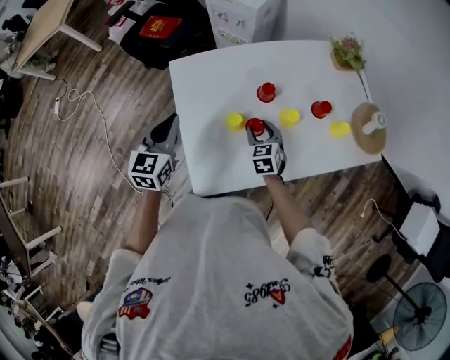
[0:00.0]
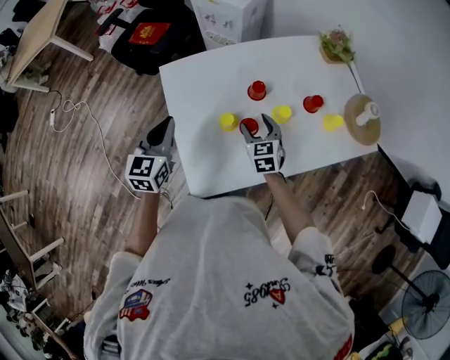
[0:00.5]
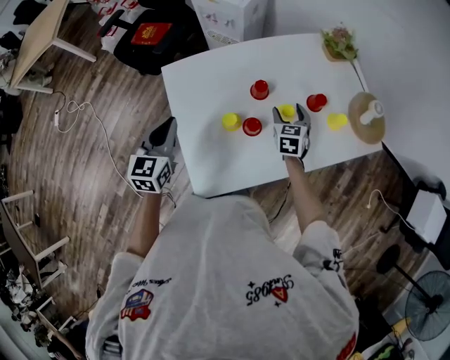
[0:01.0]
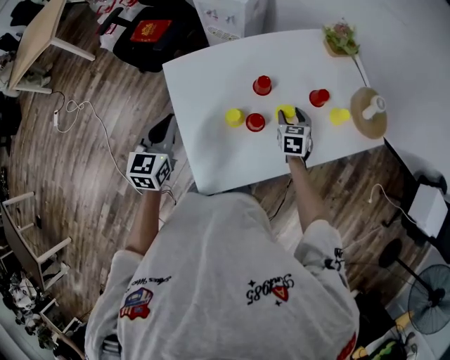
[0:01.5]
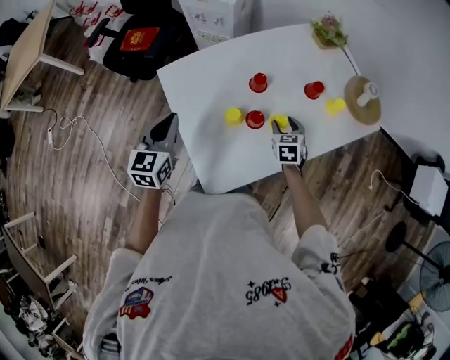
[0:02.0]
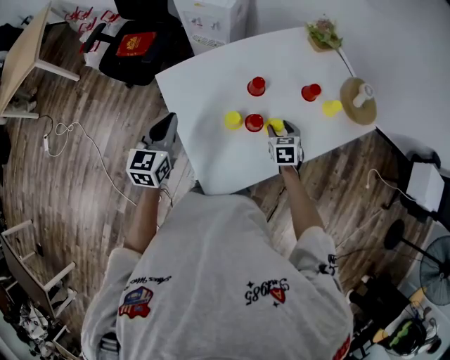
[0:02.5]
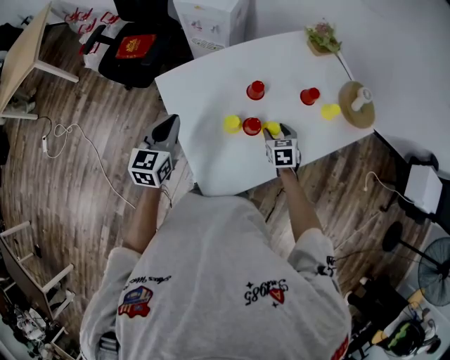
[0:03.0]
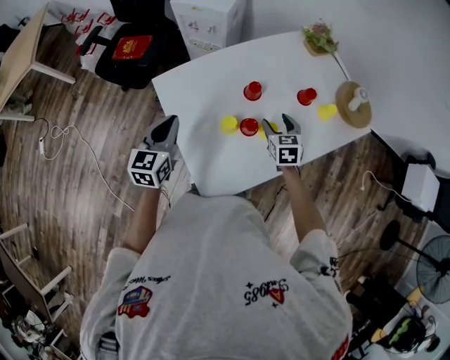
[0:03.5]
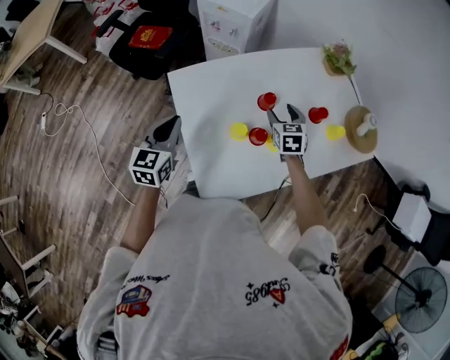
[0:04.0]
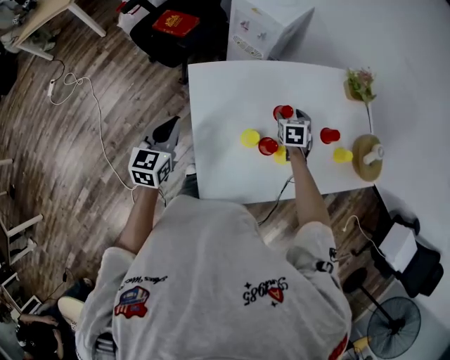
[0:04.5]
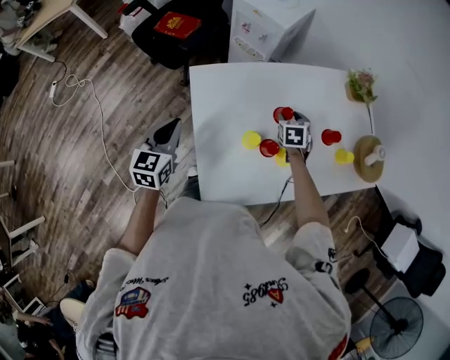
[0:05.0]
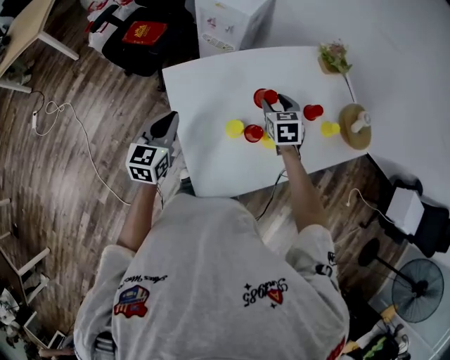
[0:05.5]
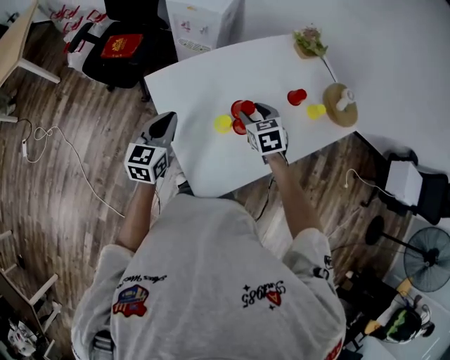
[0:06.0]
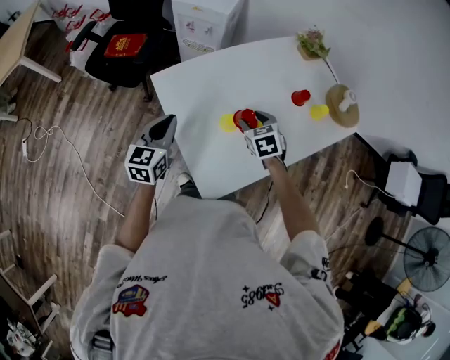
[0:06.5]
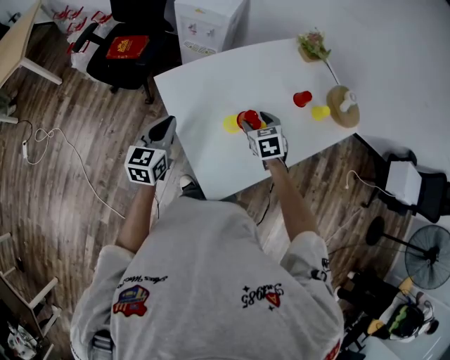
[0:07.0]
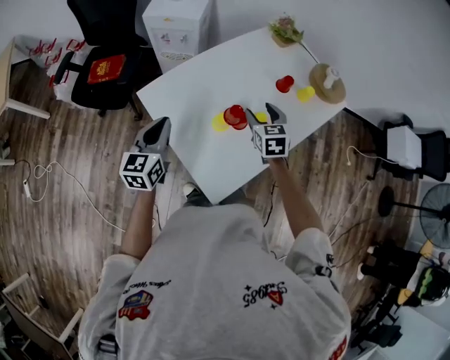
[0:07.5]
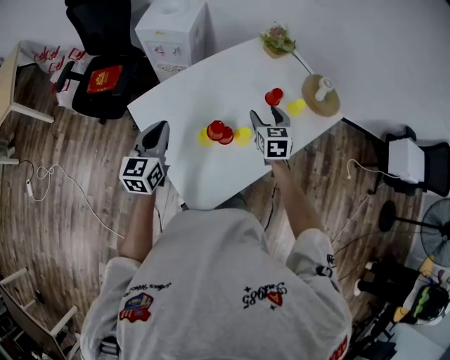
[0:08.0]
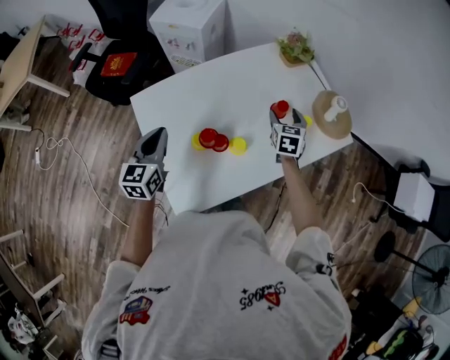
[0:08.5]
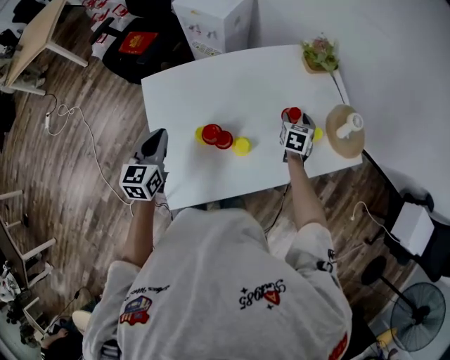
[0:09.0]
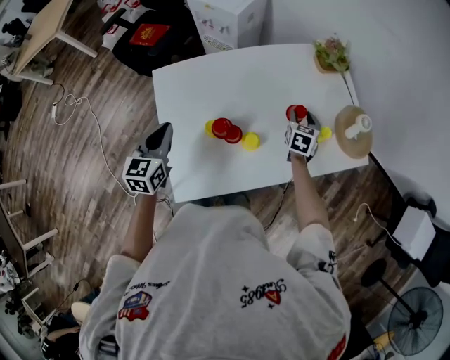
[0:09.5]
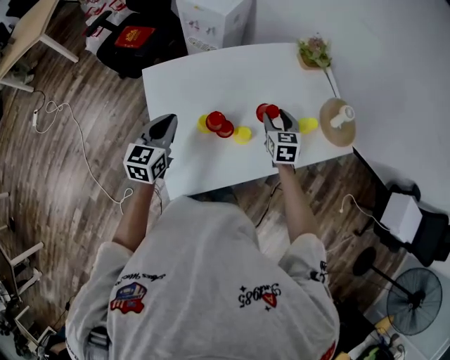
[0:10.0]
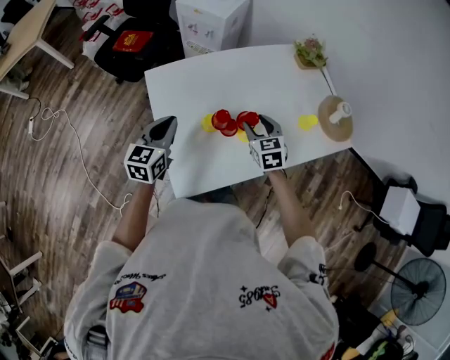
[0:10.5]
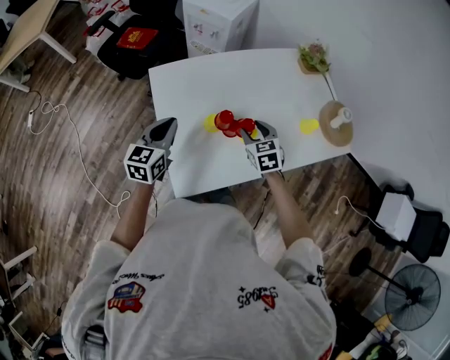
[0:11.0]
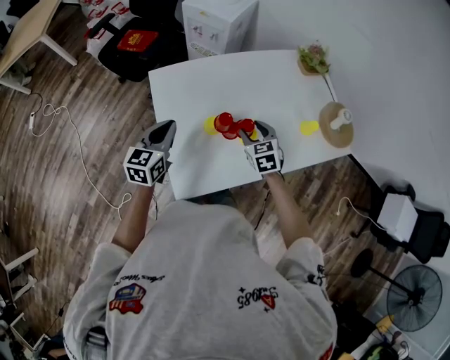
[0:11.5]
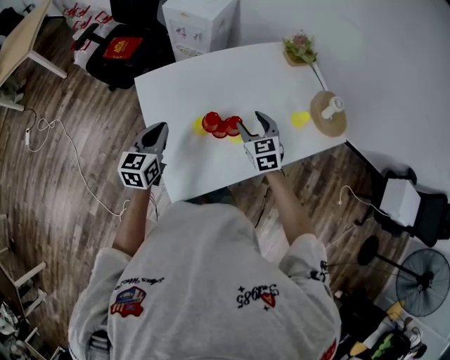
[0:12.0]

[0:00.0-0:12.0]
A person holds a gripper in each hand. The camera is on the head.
0:00.0 to 0:02.0: The right gripper travels to the right by roughly 10 cm.
0:02.0 to 0:04.0: The right gripper travels forward, to the left and upward by some 15 cm.
0:04.0 to 0:06.0: The left gripper moves approximately 5 cm to the left and comes back. The right gripper heads backward and to the left, covering roughly 10 cm.
0:06.0 to 0:08.0: The right gripper travels to the right by some 15 cm, and changes its angle by some 20 degrees. The left gripper moves to the right, roughly 5 cm.
0:08.0 to 0:10.0: The left gripper moves approximately 5 cm; the right gripper reaches about 15 cm downward, then returns.
0:10.0 to 0:12.0: The right gripper moves to the left and backward, approximately 10 cm.

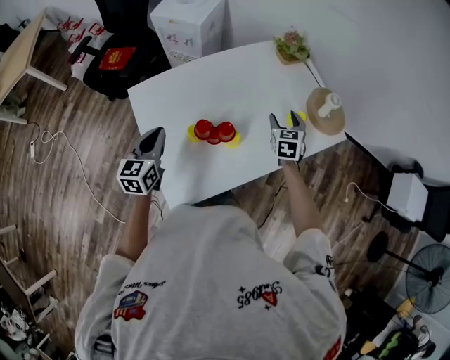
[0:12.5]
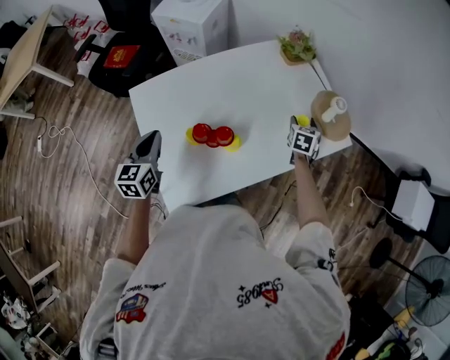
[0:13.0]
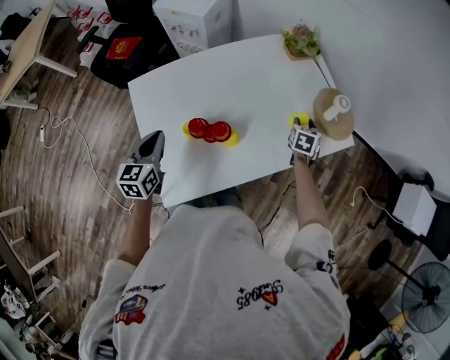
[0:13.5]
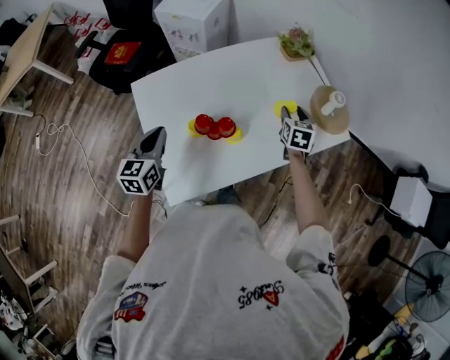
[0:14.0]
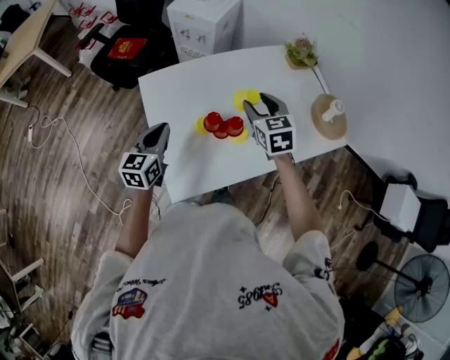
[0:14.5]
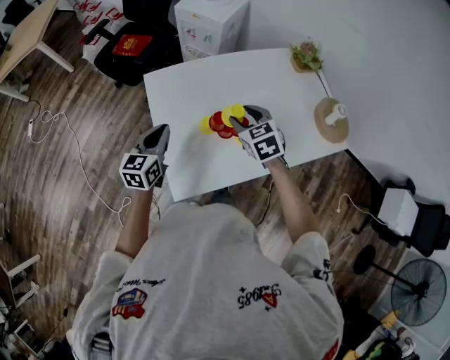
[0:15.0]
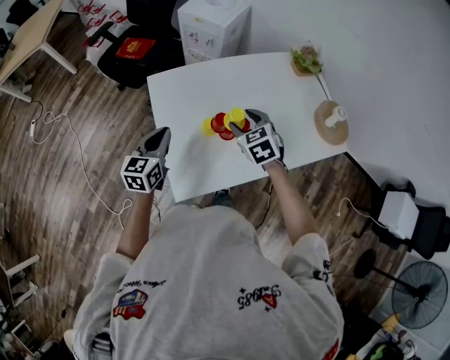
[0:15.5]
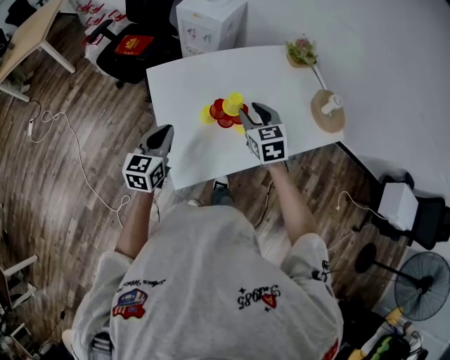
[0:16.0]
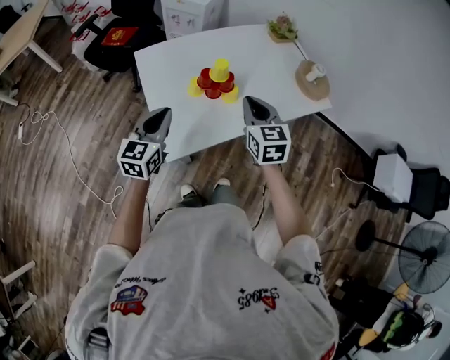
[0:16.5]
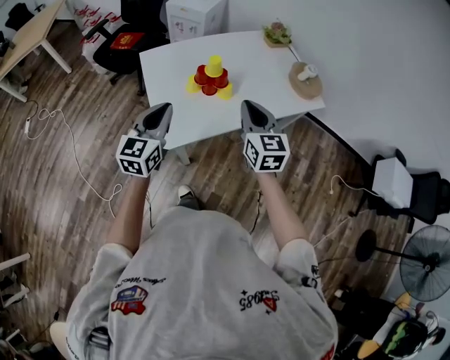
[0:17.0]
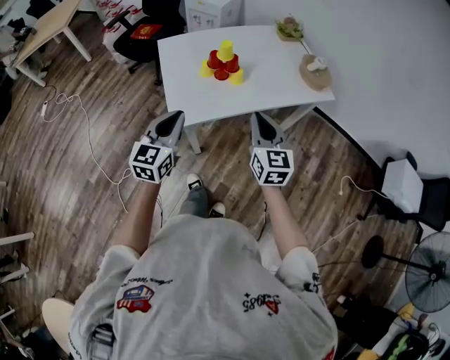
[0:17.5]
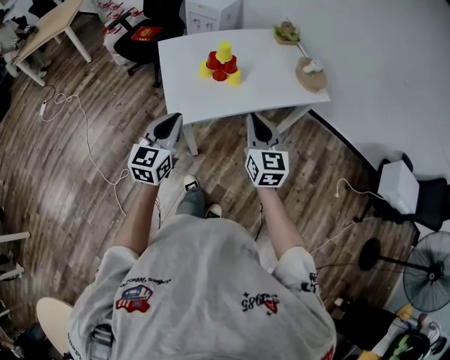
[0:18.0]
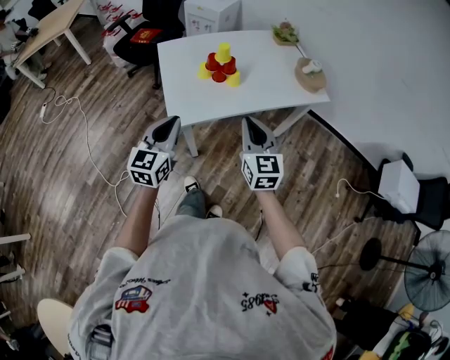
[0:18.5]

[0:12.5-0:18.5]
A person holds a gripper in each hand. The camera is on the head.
0:12.5 to 0:14.5: The right gripper heads to the left and upward, covering roughly 20 cm, and swivels approximately 20 degrees.
0:14.5 to 0:16.5: The grippers both shift backward by some 20 cm. The right gripper closes.
0:16.5 to 0:18.5: The grippers both shift backward by roughly 25 cm.

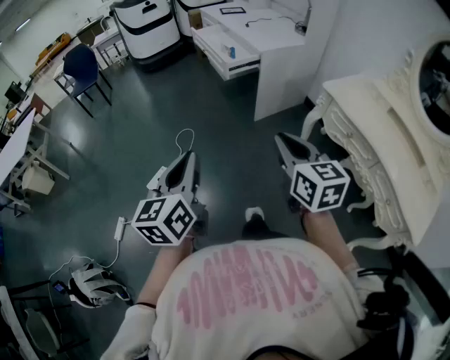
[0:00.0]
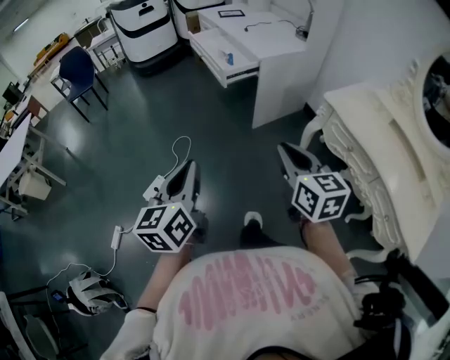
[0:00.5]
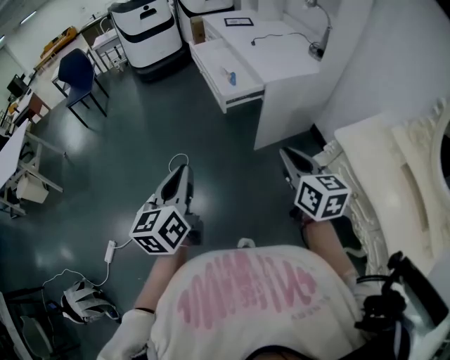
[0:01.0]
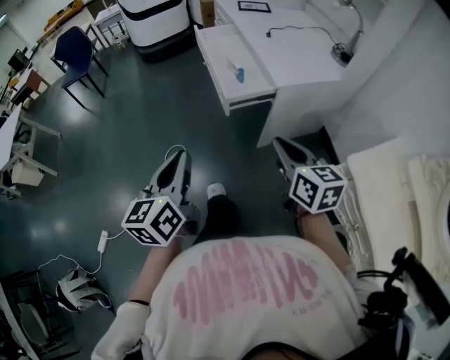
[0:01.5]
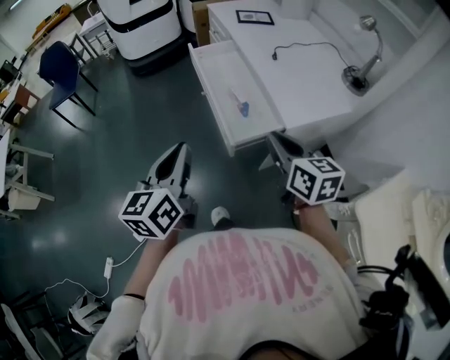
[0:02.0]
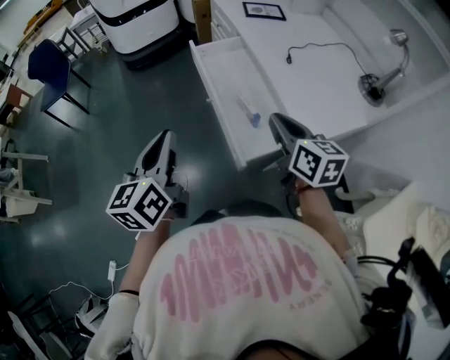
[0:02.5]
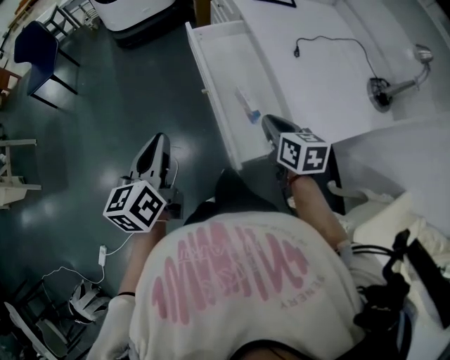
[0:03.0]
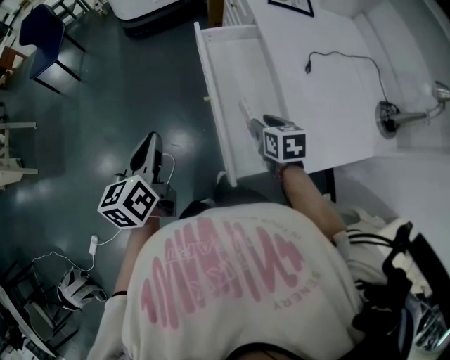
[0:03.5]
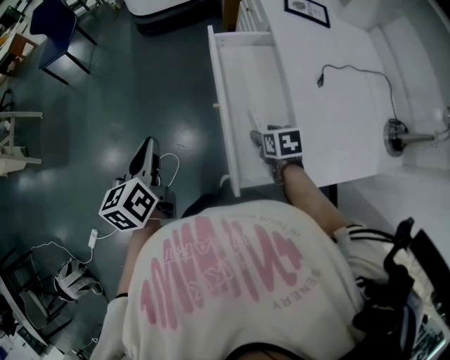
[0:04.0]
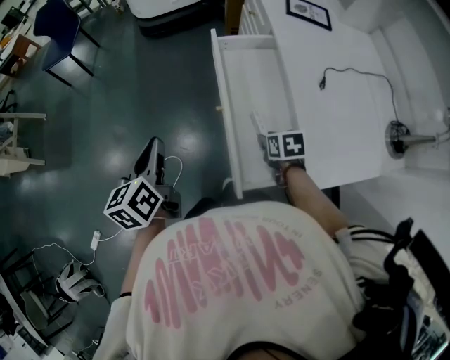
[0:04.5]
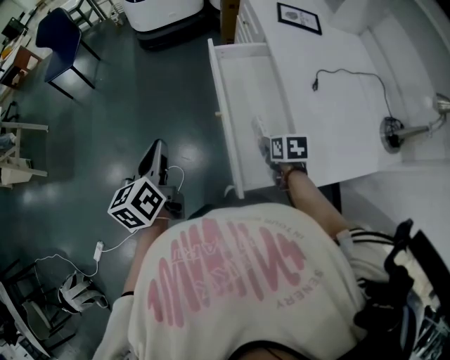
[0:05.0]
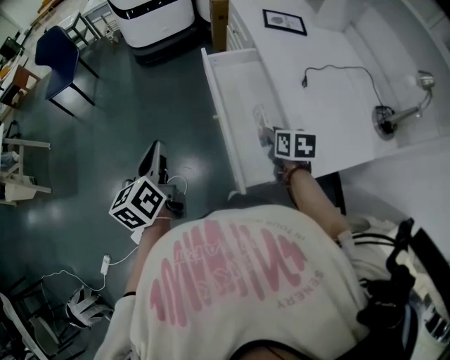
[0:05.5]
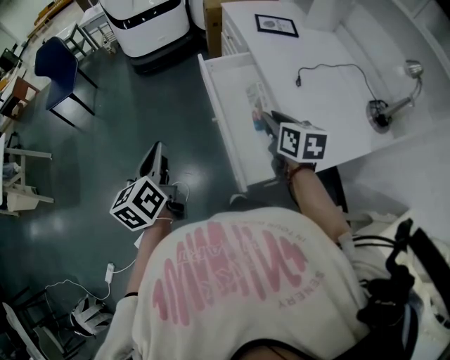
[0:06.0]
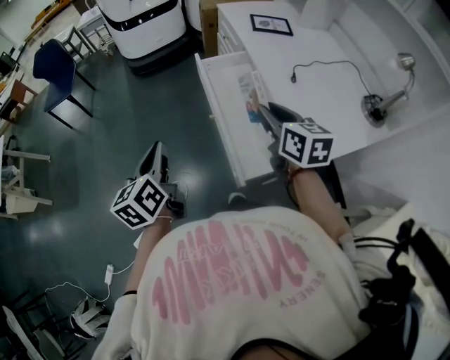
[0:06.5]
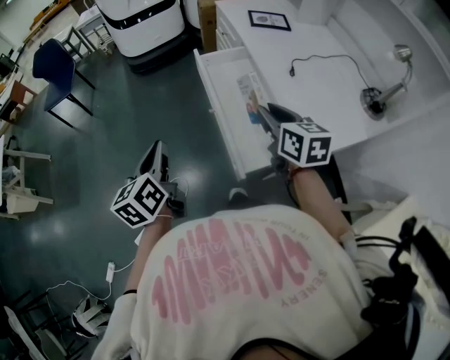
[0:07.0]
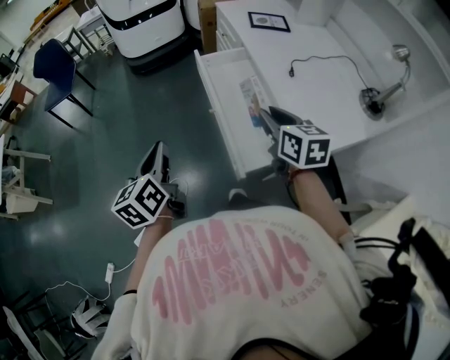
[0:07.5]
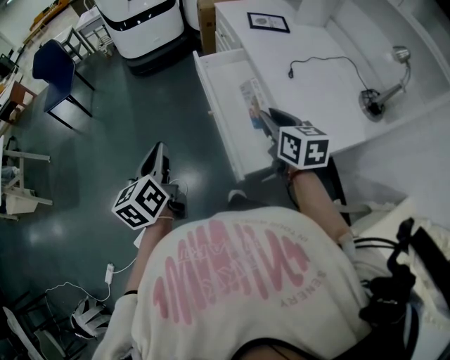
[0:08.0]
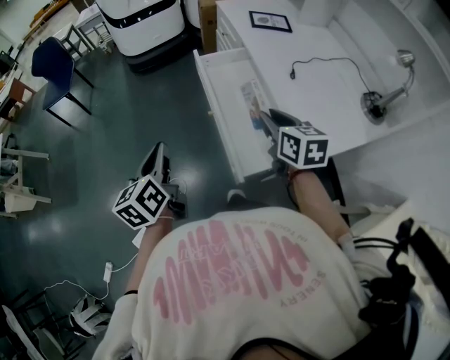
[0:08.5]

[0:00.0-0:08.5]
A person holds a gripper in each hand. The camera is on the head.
0:00.0 to 0:02.0: The two grippers travel together, forward, roughly 60 cm.
0:02.0 to 0:04.0: The two grippers go approximately 30 cm forward and downward. The right gripper tilts its fingers approximately 40 degrees downward, and opens up. Meanwhile the left gripper swivels about 30 degrees.
0:04.0 to 0:06.5: The right gripper moves upward, approximately 25 cm, angles its fingers upward, by roughly 40 degrees, and closes. Meanwhile the left gripper is displaced upward by roughly 5 cm.
0:06.5 to 0:08.5: There are only small adjustments of the grippers.
